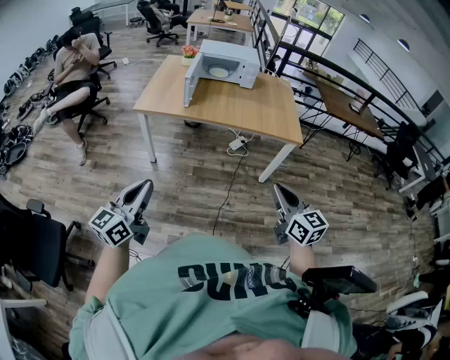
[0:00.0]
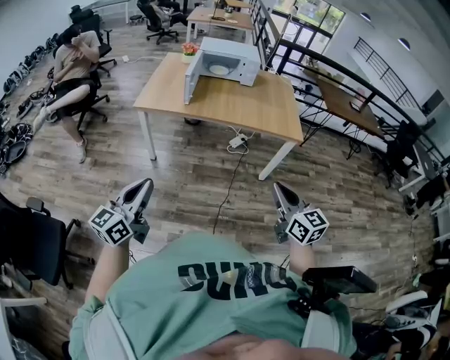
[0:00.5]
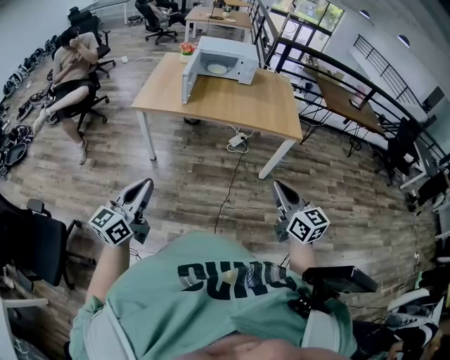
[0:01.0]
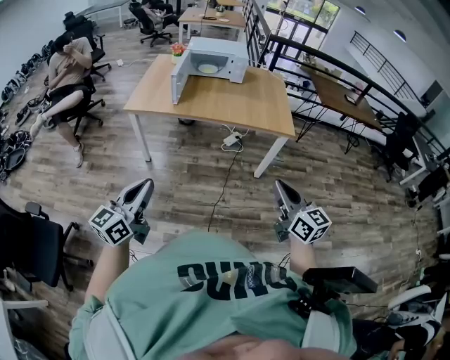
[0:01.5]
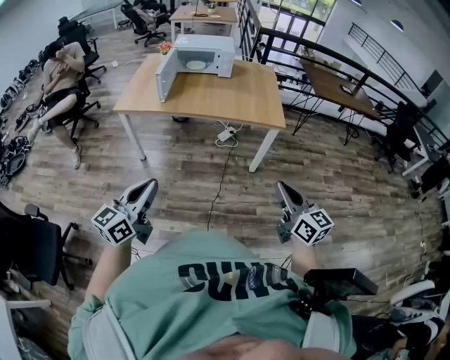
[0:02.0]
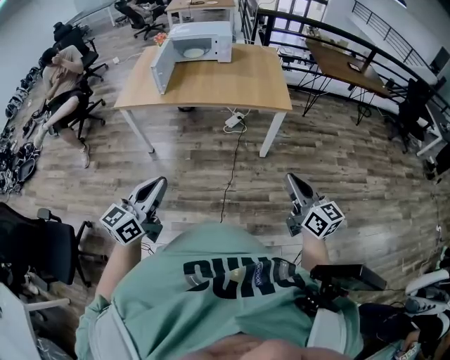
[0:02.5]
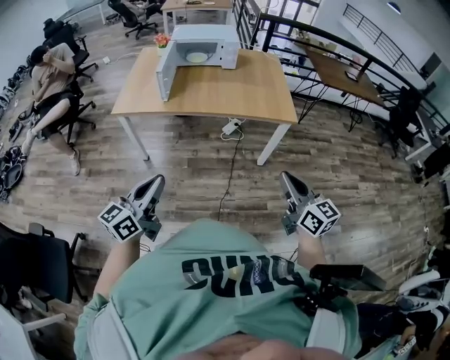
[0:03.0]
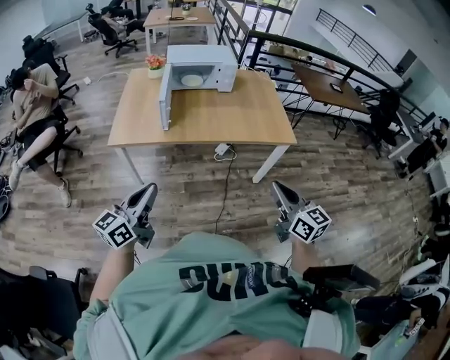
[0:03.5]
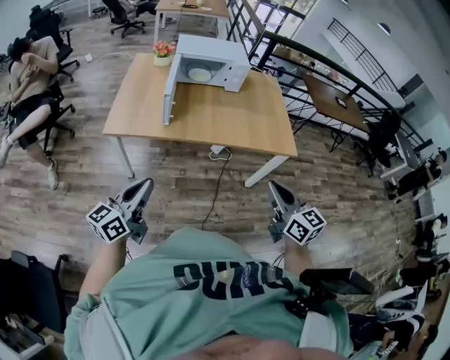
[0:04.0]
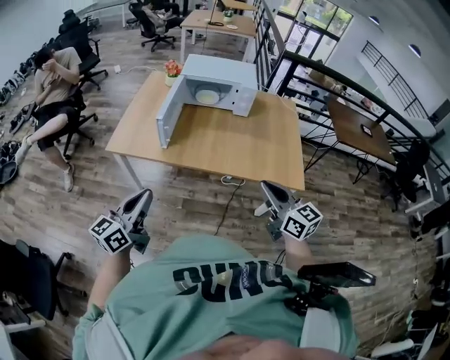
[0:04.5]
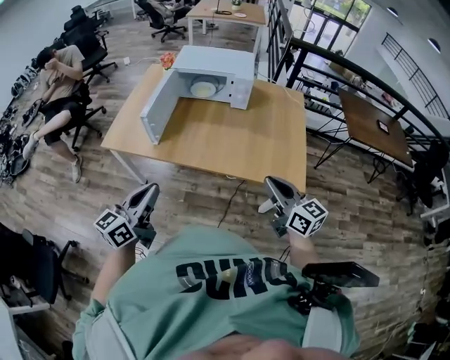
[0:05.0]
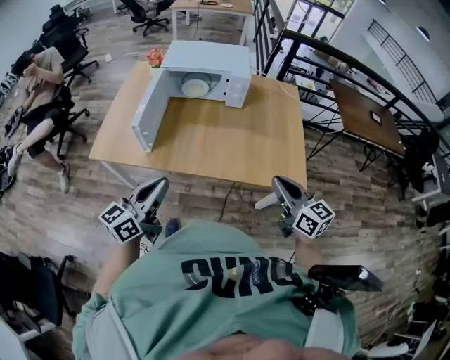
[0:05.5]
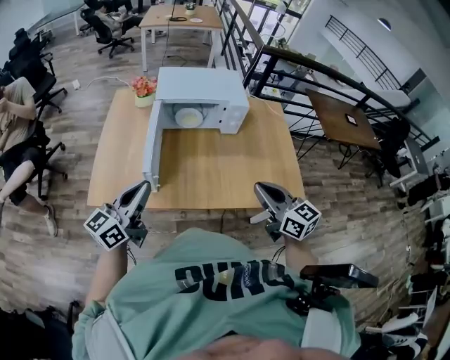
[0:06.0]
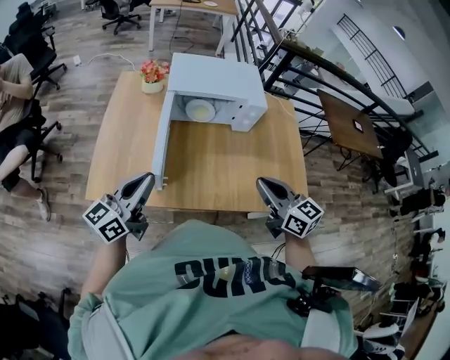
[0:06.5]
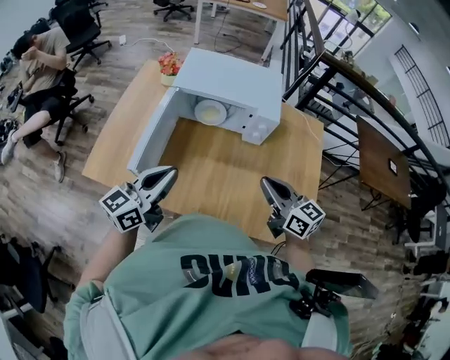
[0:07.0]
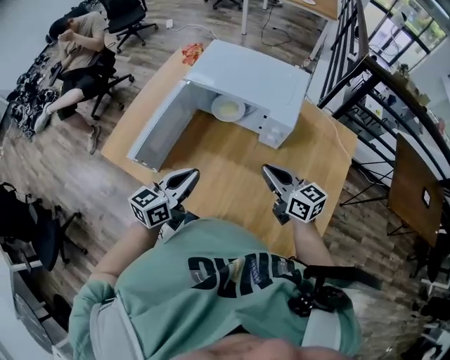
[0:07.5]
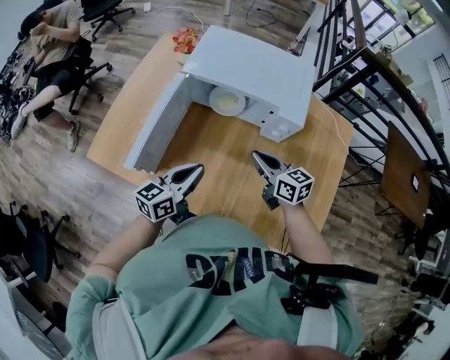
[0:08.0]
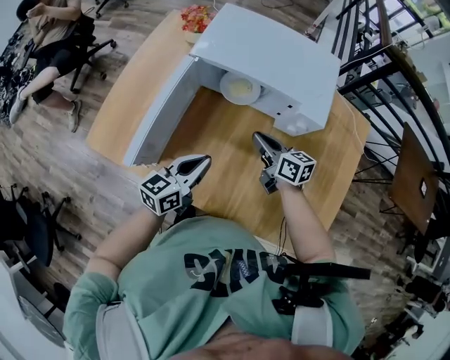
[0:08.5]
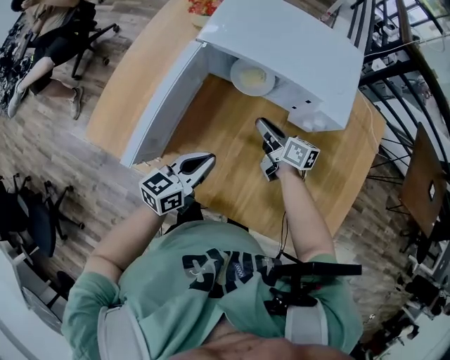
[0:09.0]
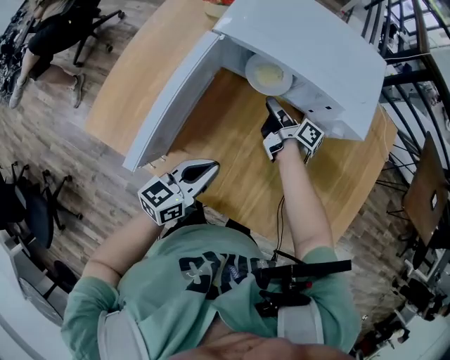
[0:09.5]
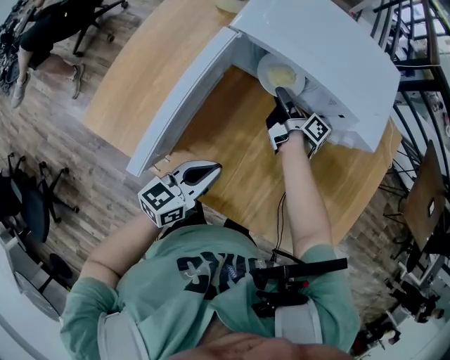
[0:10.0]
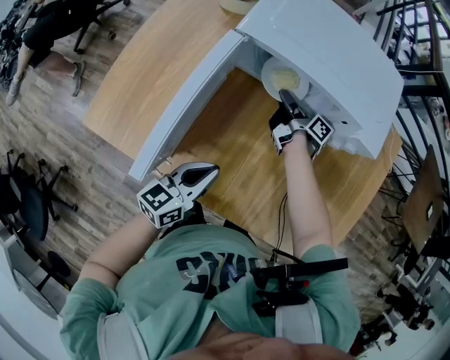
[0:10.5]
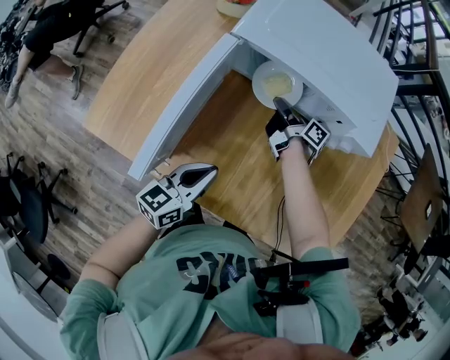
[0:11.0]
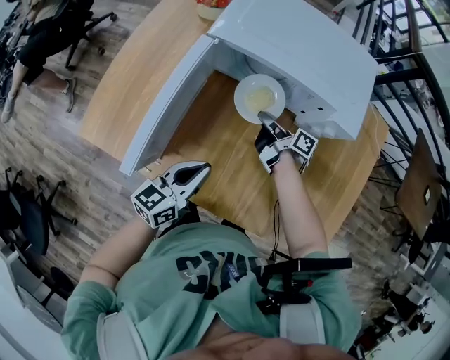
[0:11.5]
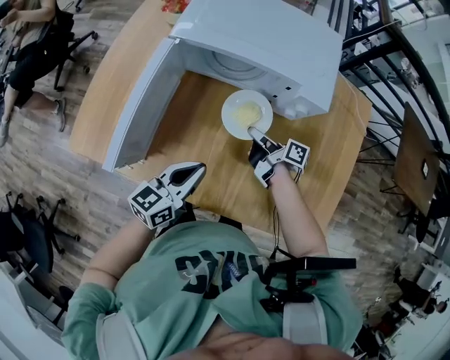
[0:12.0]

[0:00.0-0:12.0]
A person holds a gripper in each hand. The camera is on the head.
0:00.0 to 0:02.0: The two grippers go about 15 cm to the right.
0:02.0 to 0:04.0: The left gripper shifts some 35 cm forward and to the left, while the right gripper shifts about 35 cm to the left and forward.
0:04.0 to 0:06.0: The two grippers go some 35 cm forward.
0:06.0 to 0:08.0: The left gripper moves roughly 30 cm, and changes its angle by roughly 20 degrees. Meanwhile the right gripper ends up roughly 35 cm from where it was, and turns by about 30 degrees.
0:08.0 to 0:10.0: The left gripper goes approximately 10 cm downward. The right gripper is displaced forward, downward and to the left by about 30 cm, rotates around the line of its fingers by approximately 60 degrees, clockwise from behind, and opens up.
0:10.0 to 0:12.0: The right gripper is displaced backward and to the right by approximately 15 cm, and closes up; the left gripper moves to the right, roughly 5 cm.

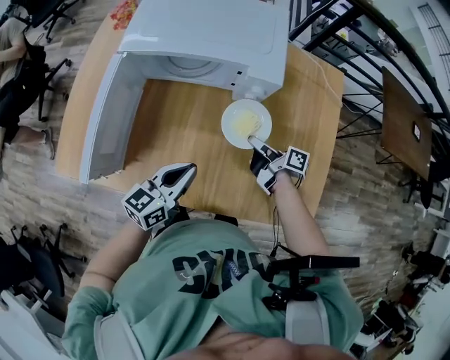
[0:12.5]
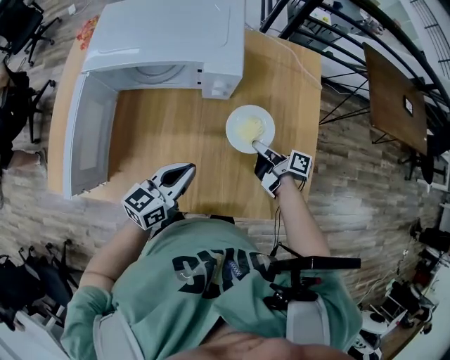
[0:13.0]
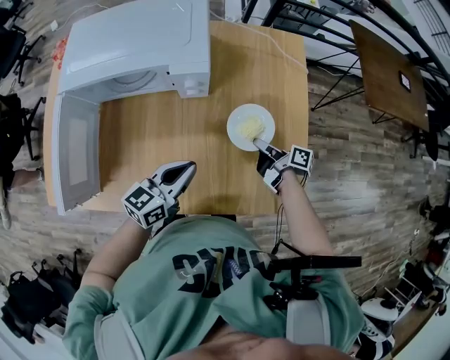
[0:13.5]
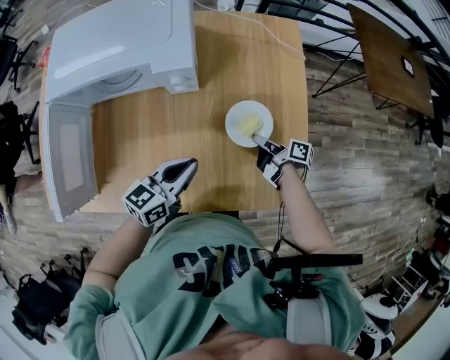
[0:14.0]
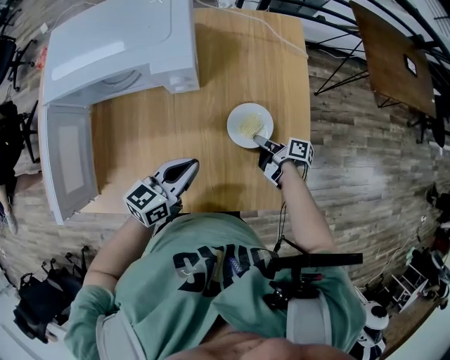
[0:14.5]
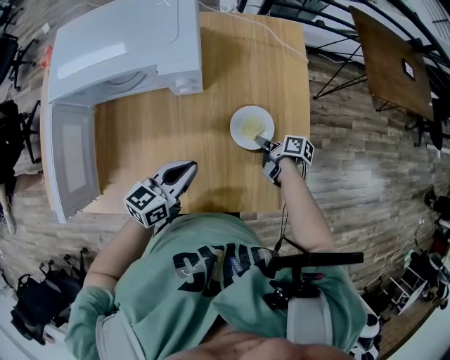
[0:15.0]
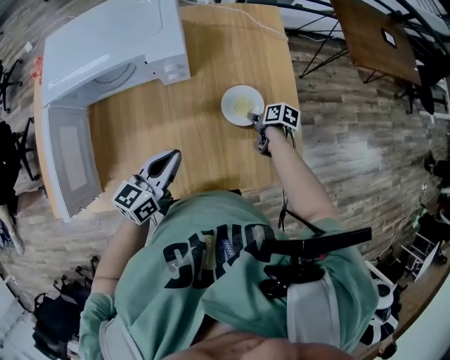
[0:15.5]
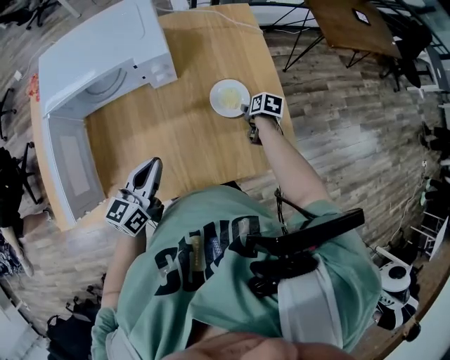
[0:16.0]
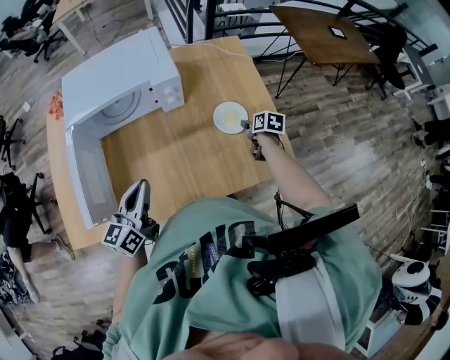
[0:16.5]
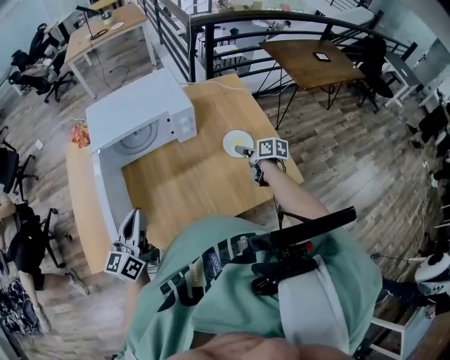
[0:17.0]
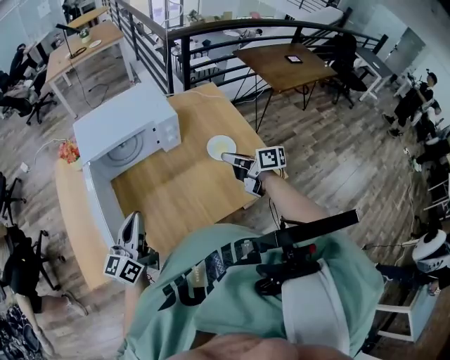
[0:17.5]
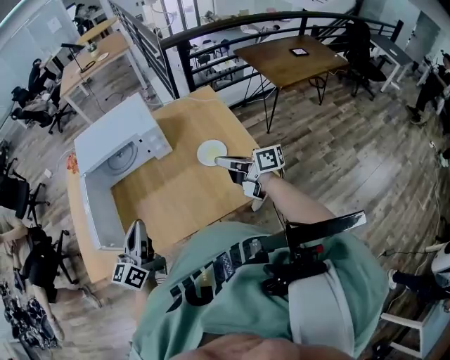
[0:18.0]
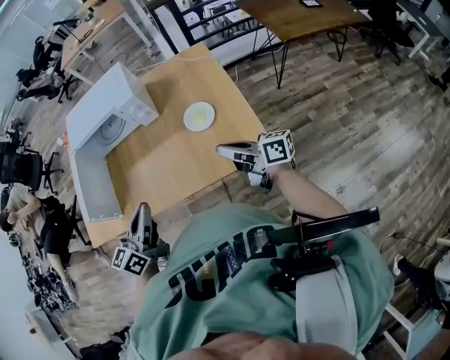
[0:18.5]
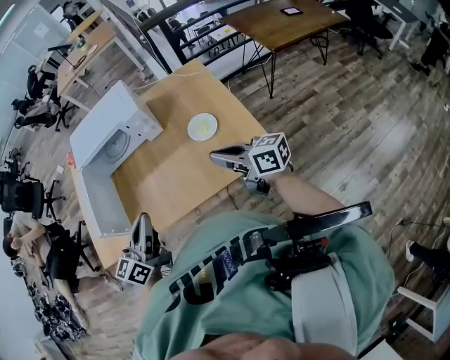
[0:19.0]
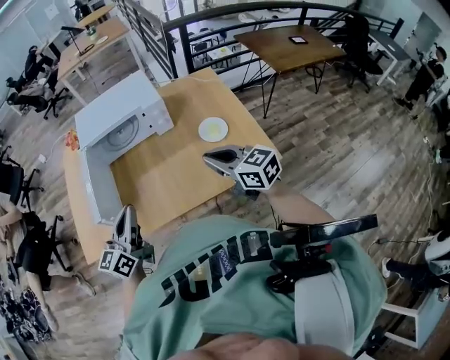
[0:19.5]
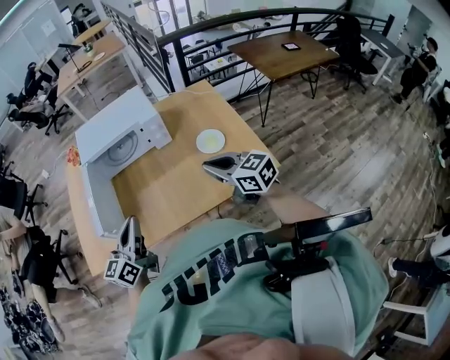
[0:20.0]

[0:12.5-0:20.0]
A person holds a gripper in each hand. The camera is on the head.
0:12.5 to 0:14.5: The right gripper goes about 25 cm to the right and downward, while the left gripper heads to the right, covering some 15 cm.
0:14.5 to 0:16.5: The right gripper goes approximately 10 cm upward, changes its angle by about 50 degrees, and opens up. The left gripper shifts some 25 cm to the left, upward and backward.
0:16.5 to 0:18.0: The right gripper goes about 30 cm upward and backward, points its fingers roughly 50 degrees further upward, and closes. The left gripper moves backward and upward, about 15 cm, and goes to the left and returns, approximately 10 cm each way.
0:18.0 to 0:20.0: The left gripper reaches approximately 15 cm to the right, then returns; the right gripper shifts about 10 cm to the left and backward, and changes its angle by roughly 40 degrees.

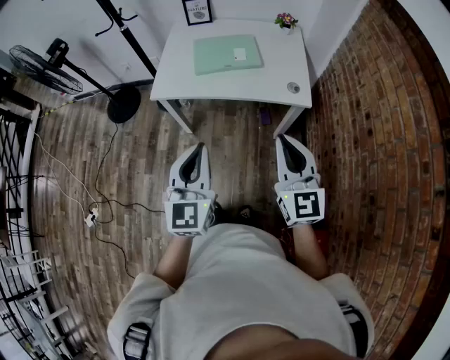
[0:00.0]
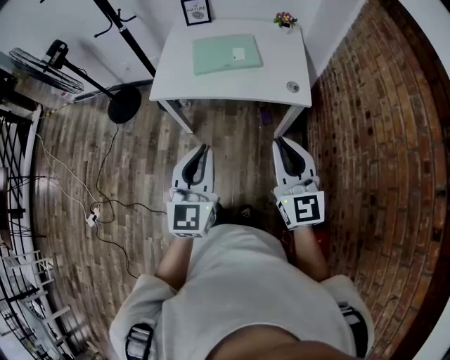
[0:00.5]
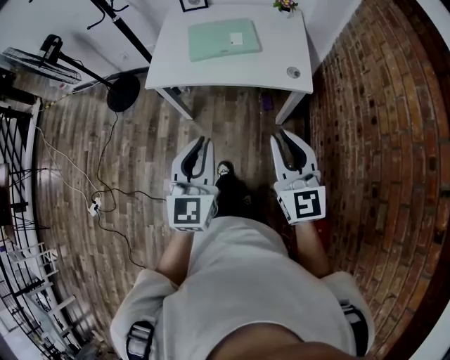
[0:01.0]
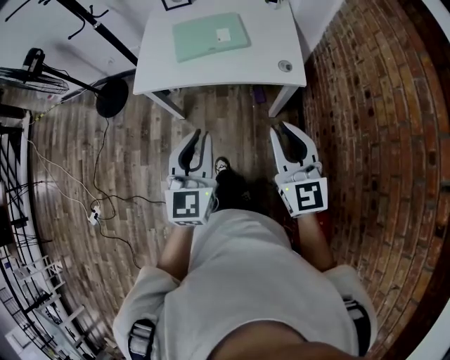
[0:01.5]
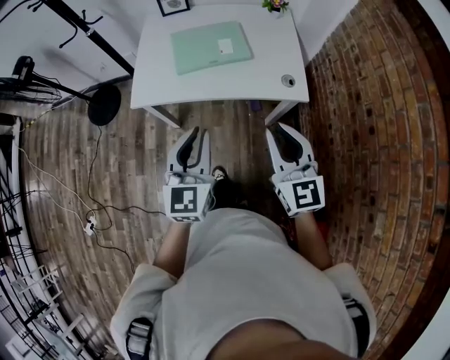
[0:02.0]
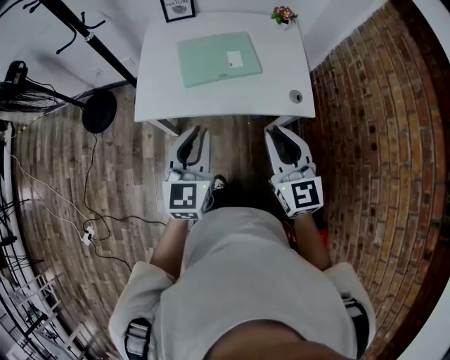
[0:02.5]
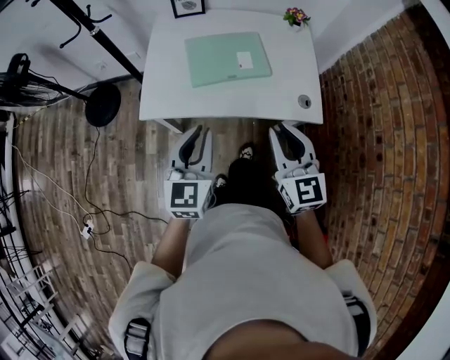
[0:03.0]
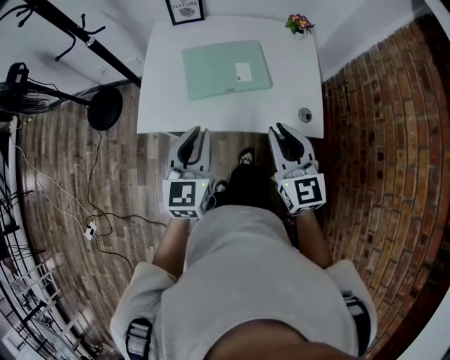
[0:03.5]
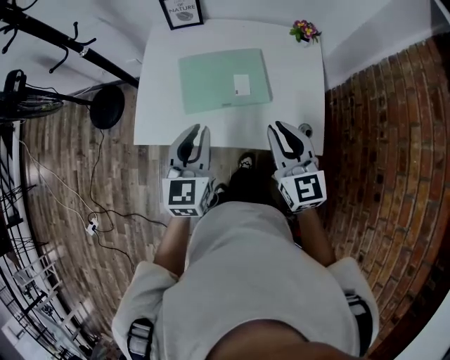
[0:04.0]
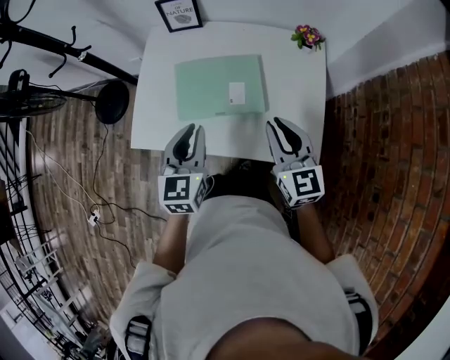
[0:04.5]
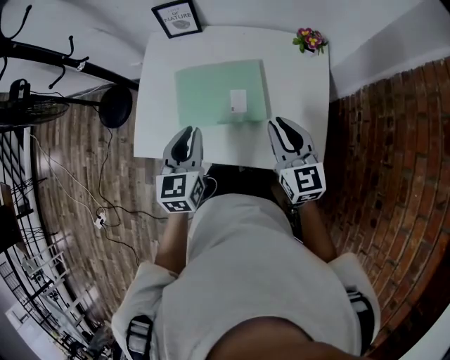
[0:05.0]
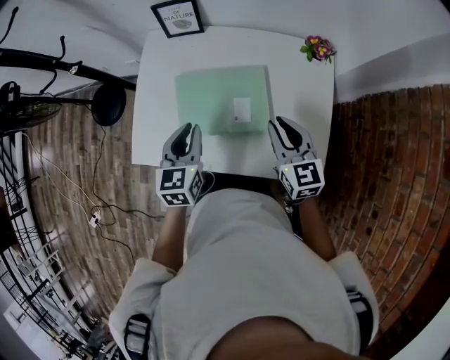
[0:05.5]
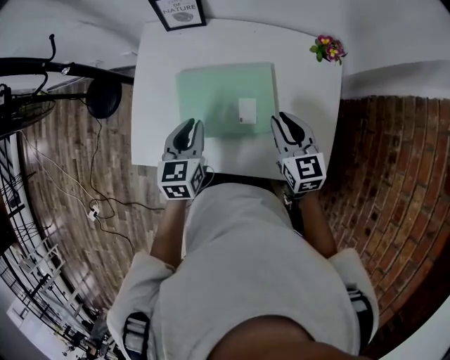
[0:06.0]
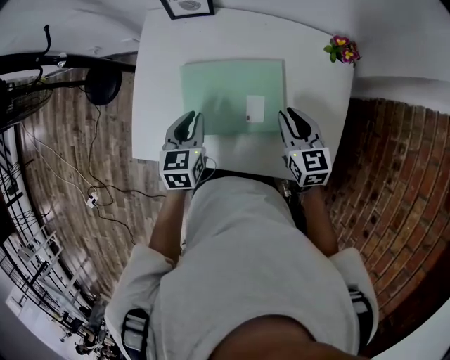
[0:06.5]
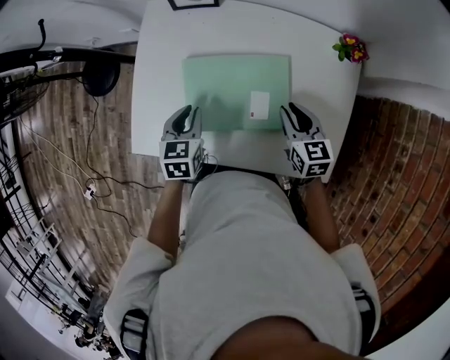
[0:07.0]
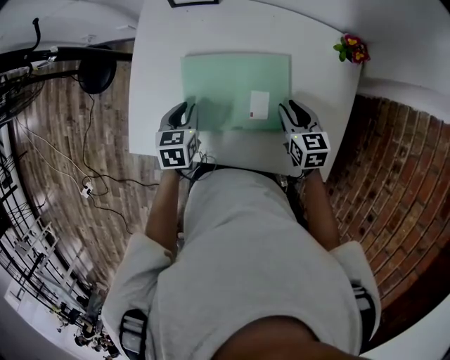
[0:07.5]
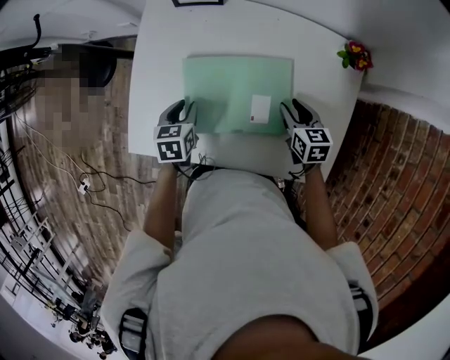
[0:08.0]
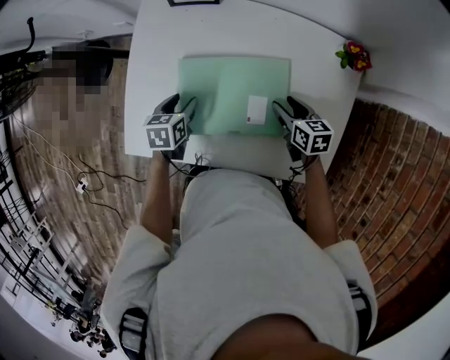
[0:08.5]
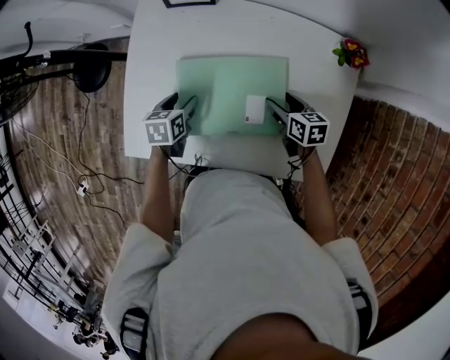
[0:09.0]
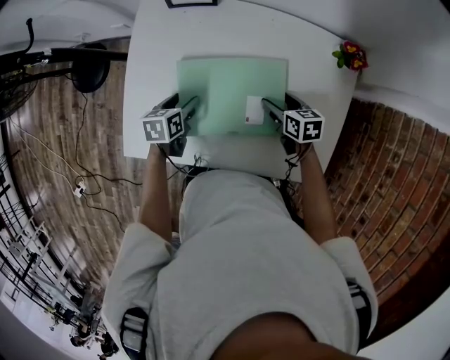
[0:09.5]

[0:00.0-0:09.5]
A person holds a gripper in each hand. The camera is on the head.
0:00.0 to 0:02.0: The grippers both shift forward by some 10 cm.
0:02.0 to 0:04.0: The two grippers go roughly 25 cm forward.
0:04.0 to 0:05.5: The two grippers go roughly 15 cm forward and downward.
0:05.5 to 0:07.5: The right gripper goes approximately 15 cm downward and forward, and rotates about 20 degrees; the left gripper heads downward, forward and to the left, covering roughly 20 cm, and turns by roughly 20 degrees.
0:07.5 to 0:09.5: Both grippers travel together downward, about 5 cm. The right gripper opens. Meanwhile the left gripper opens up.
